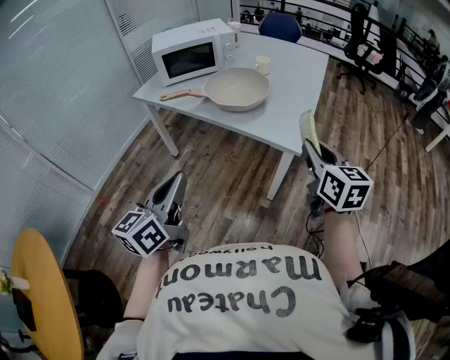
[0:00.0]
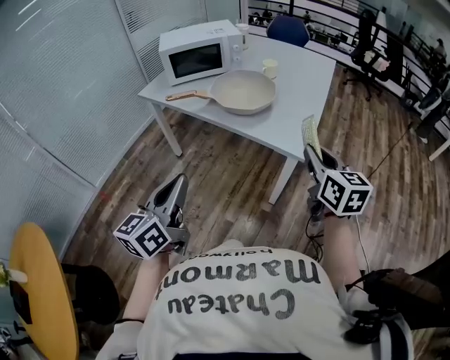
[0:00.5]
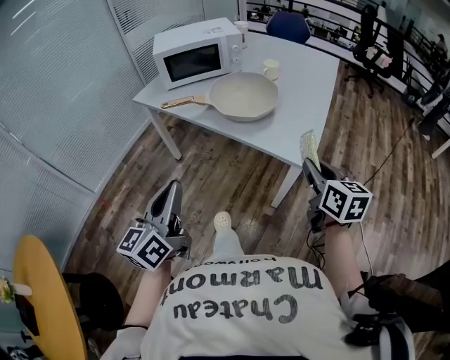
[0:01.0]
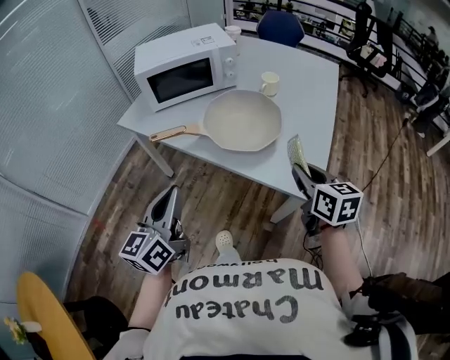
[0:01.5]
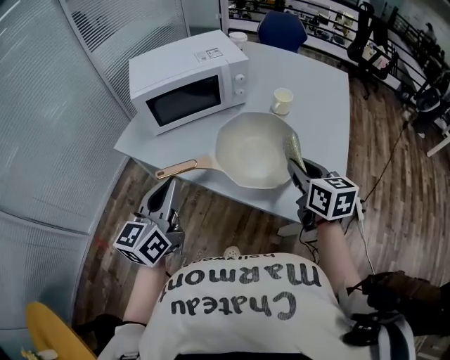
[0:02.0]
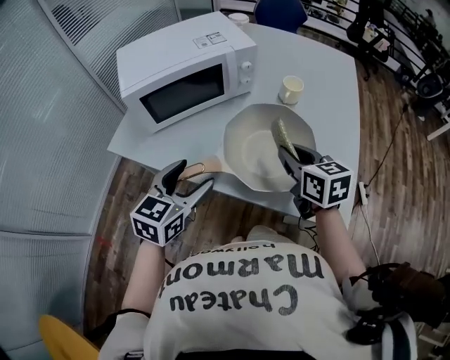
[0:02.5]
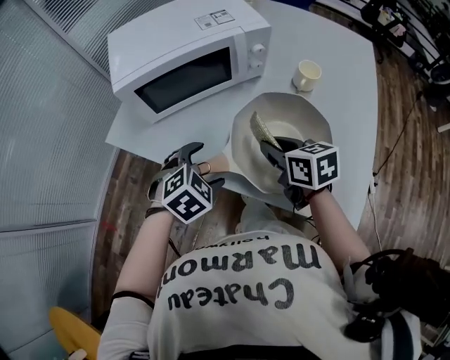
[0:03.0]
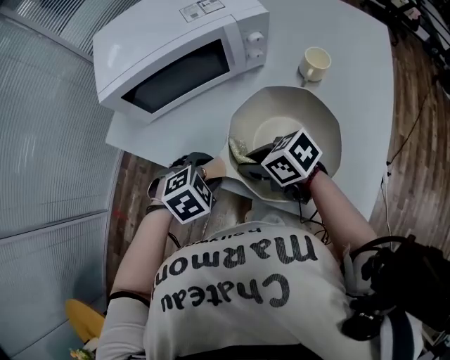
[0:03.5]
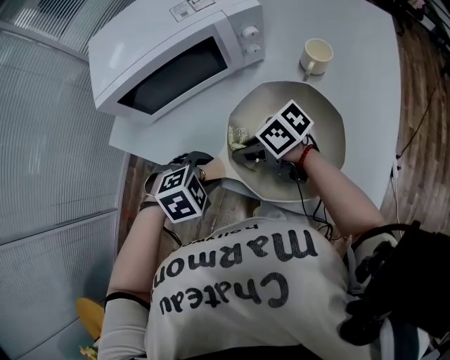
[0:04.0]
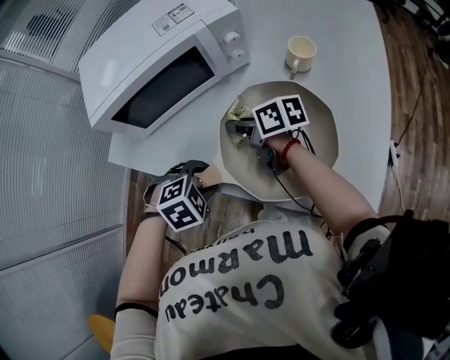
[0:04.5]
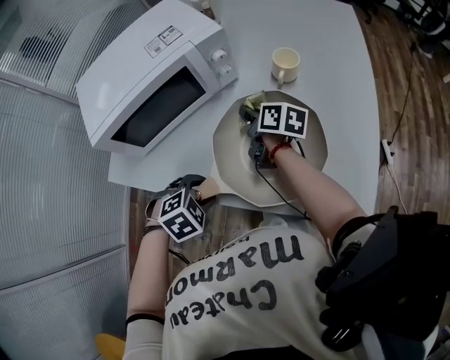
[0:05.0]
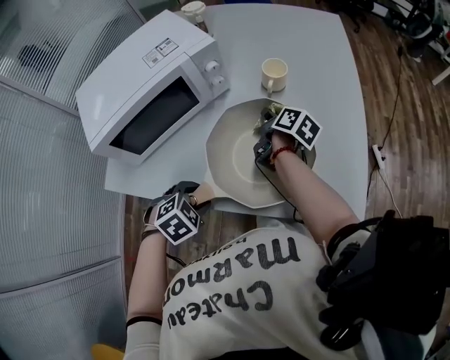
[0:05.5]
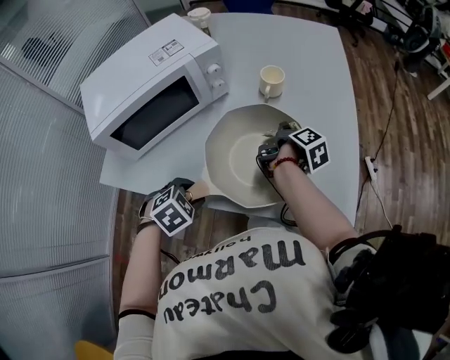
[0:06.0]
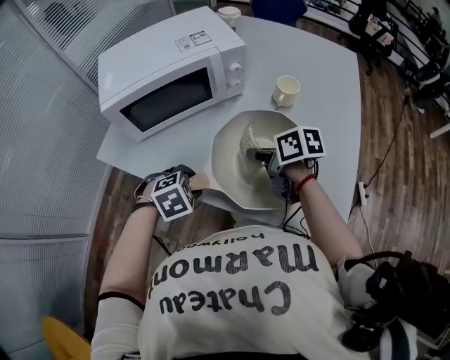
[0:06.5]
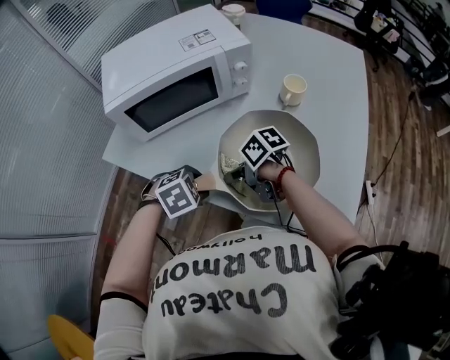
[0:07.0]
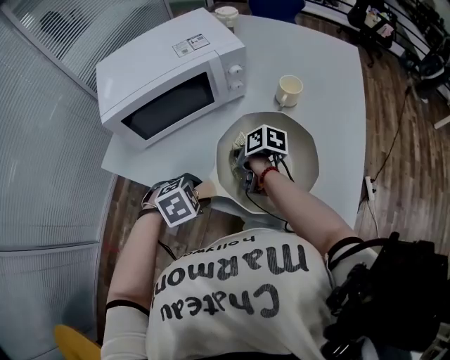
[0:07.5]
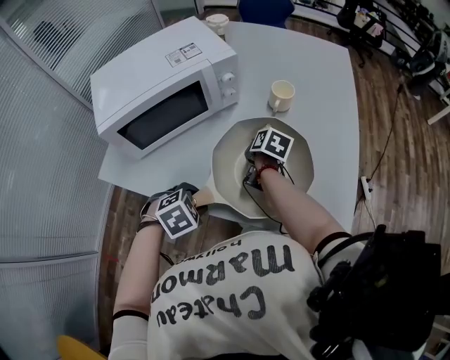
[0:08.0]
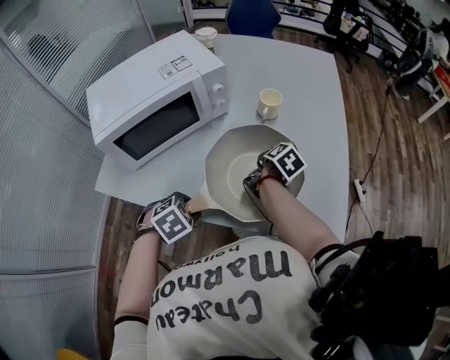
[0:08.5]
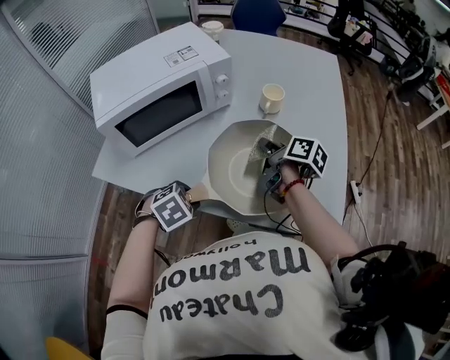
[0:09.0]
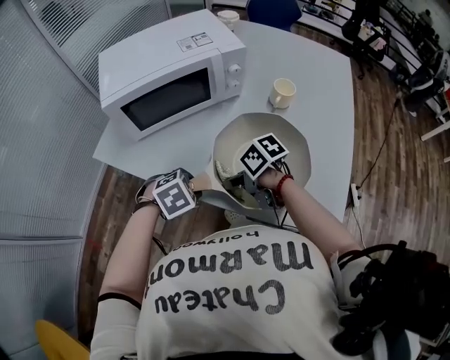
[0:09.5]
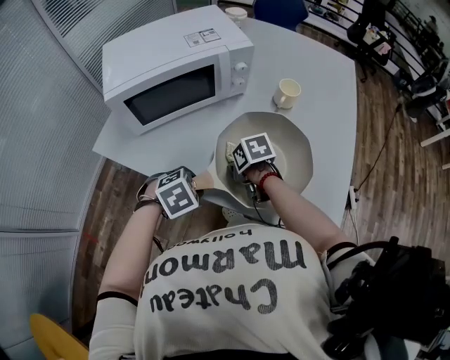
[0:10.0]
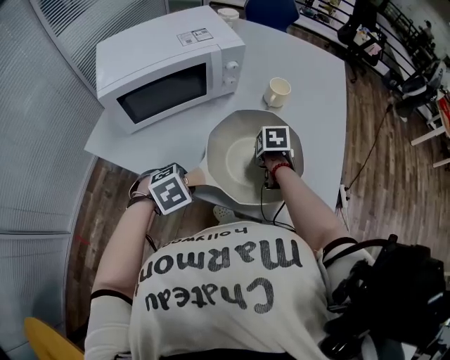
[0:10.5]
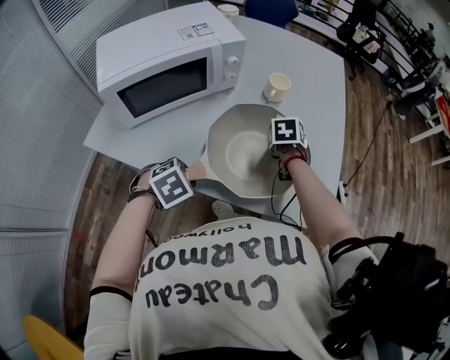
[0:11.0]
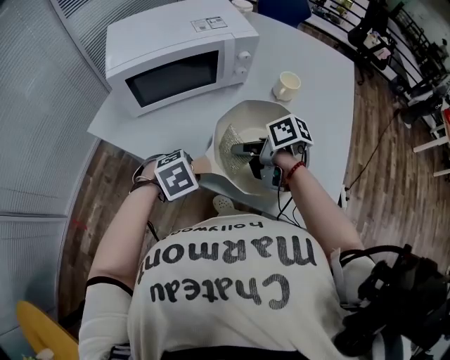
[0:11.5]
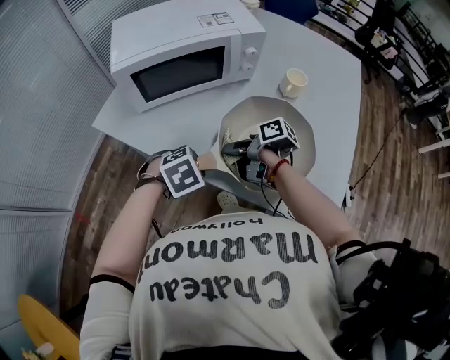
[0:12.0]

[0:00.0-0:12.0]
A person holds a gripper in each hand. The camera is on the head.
0:00.0 to 0:02.0: The left gripper ends up approximately 40 cm from where it was.
0:02.0 to 0:04.0: The left gripper heads downward, covering about 20 cm, angles its fingers downward, by approximately 70 degrees, and opens its fingers.

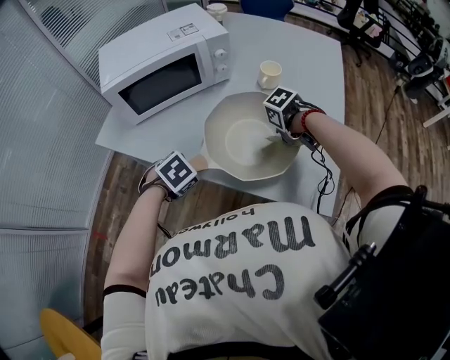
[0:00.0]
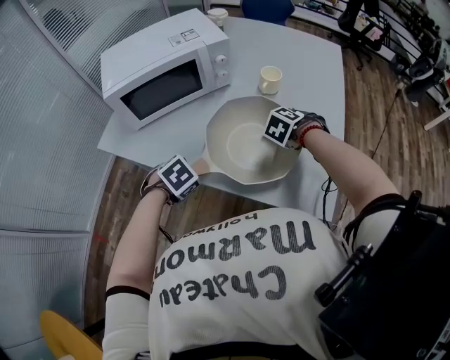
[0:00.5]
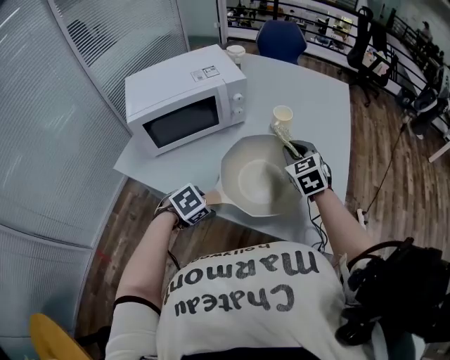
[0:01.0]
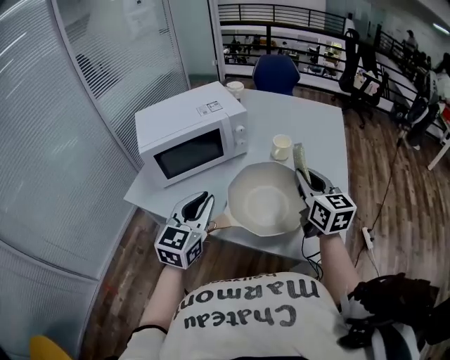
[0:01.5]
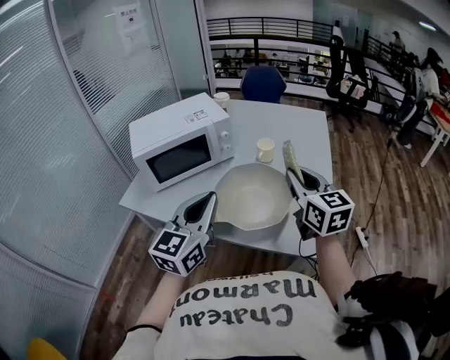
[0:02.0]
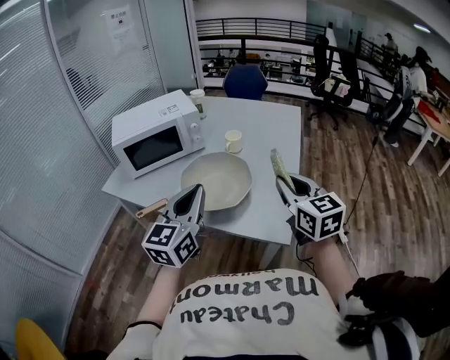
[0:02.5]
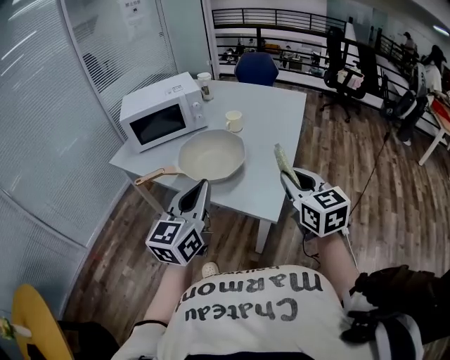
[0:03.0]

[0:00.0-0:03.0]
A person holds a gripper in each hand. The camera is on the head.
0:00.0 to 0:01.5: The left gripper is displaced upward by roughly 20 cm, and points its fingers some 70 degrees further upward.
0:01.5 to 0:03.0: The left gripper shifts by approximately 35 cm.

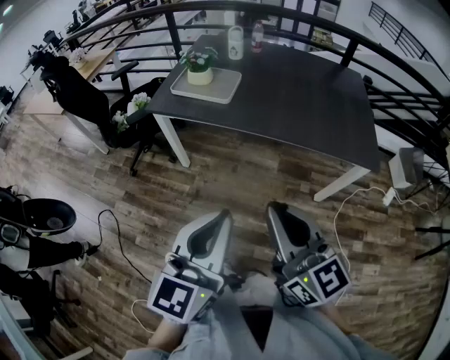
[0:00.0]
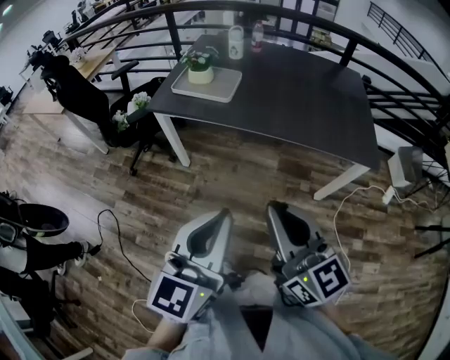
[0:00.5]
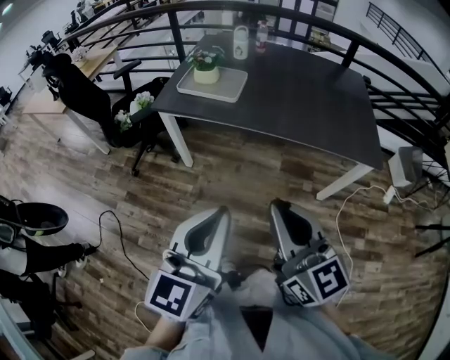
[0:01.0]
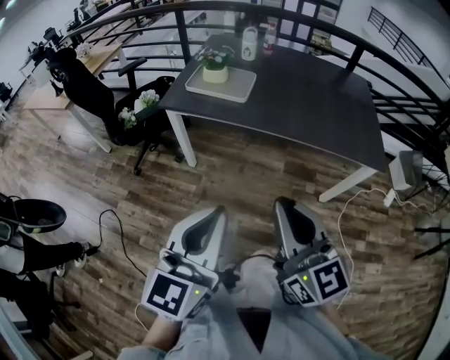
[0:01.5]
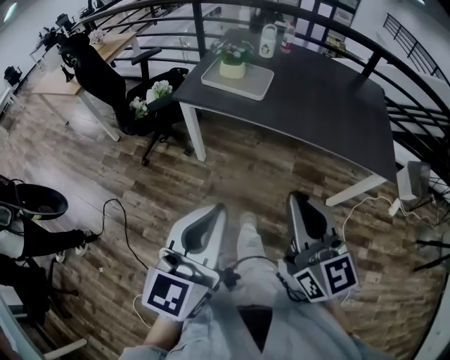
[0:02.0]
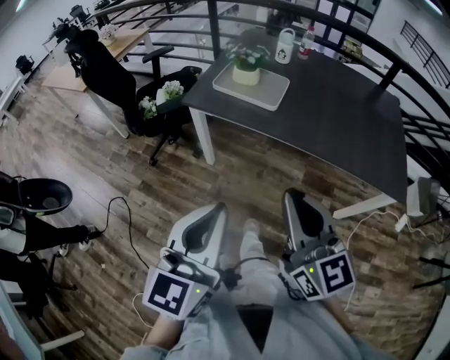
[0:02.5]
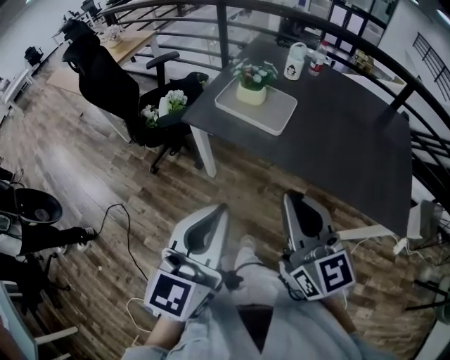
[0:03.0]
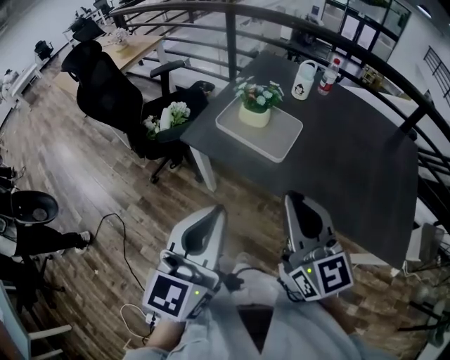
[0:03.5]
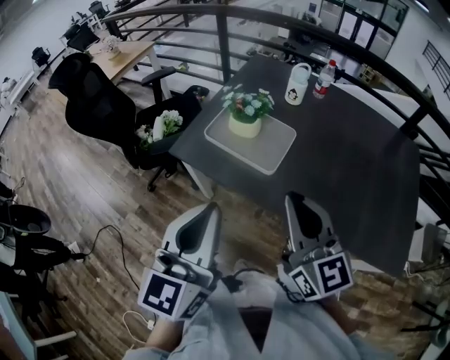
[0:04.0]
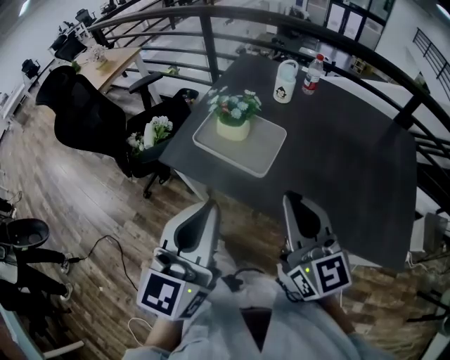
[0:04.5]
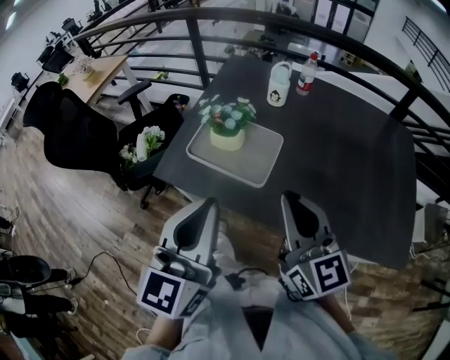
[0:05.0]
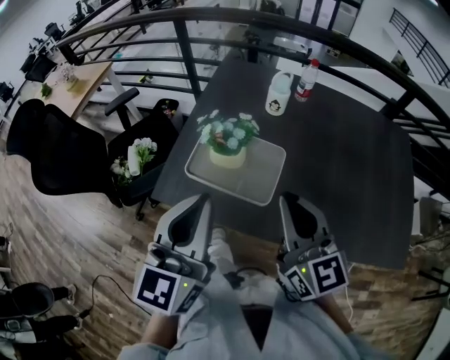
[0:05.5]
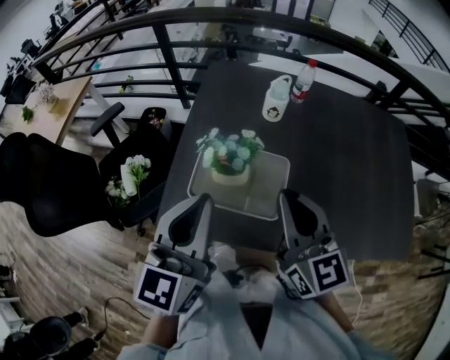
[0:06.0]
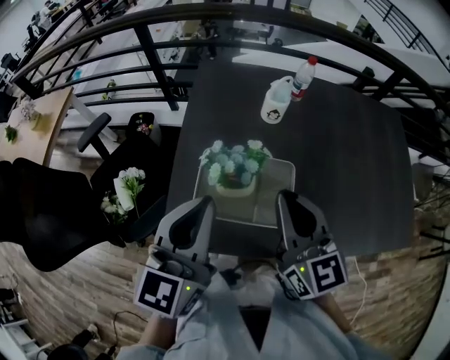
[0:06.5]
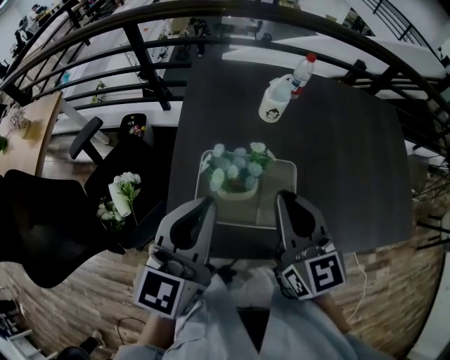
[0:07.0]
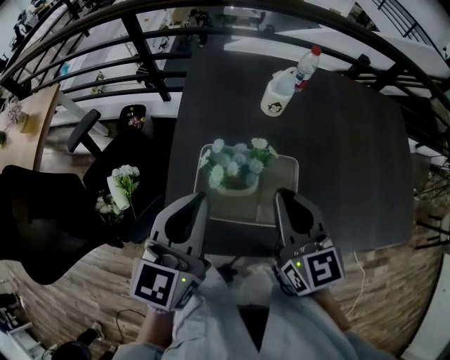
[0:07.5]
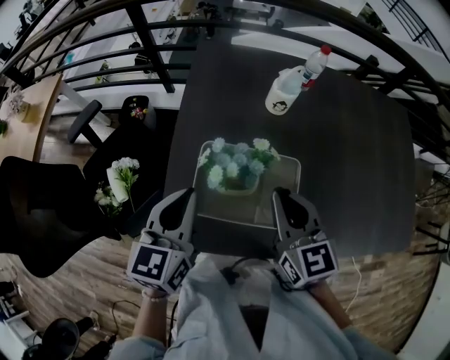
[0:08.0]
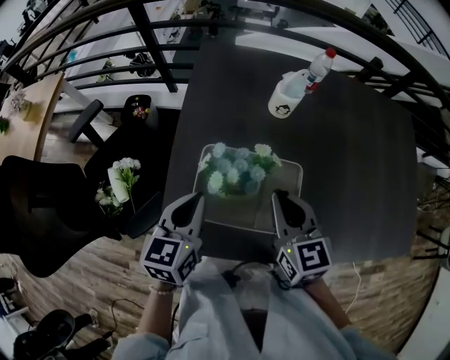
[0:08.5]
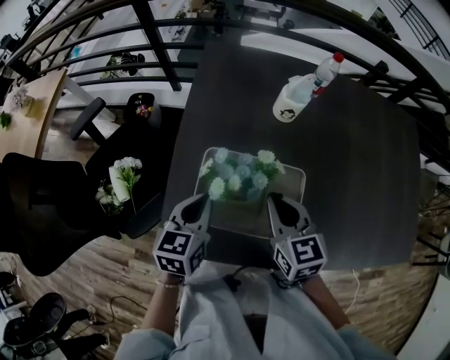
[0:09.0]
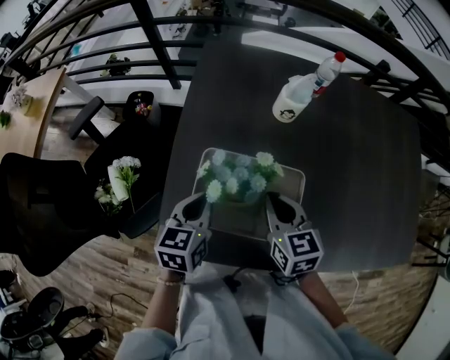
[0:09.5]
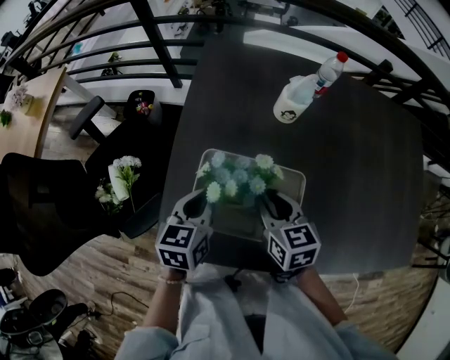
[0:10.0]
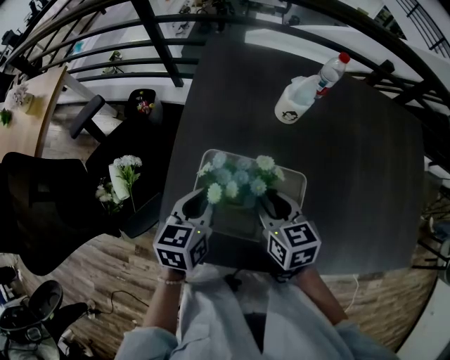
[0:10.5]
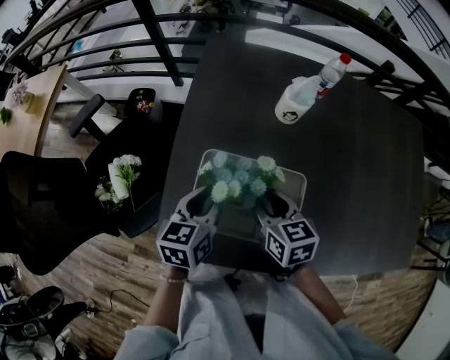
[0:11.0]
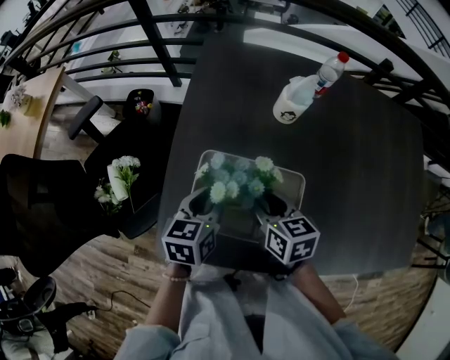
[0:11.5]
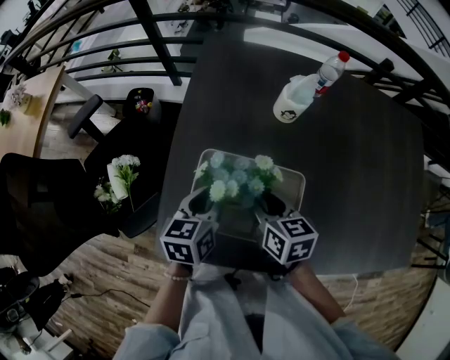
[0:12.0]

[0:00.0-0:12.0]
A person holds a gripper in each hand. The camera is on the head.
0:00.0 to 0:02.0: The right gripper moves to the left, approximately 10 cm; the left gripper shifts roughly 10 cm to the left.
0:02.0 to 0:04.0: Both grippers travel together forward, some 35 cm.
0:04.0 to 0:06.0: The grippers both shift forward by roughly 20 cm.
0:06.0 to 0:08.0: The left gripper goes roughly 15 cm downward, forward and to the left. Meanwhile the right gripper heads downward and forward, covering some 10 cm.
0:08.0 to 0:10.0: The grippers both shift downward by some 10 cm. The right gripper opens its fingers.
0:10.0 to 0:12.0: The left gripper opens its fingers.
